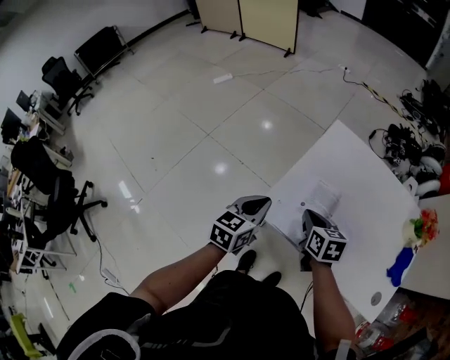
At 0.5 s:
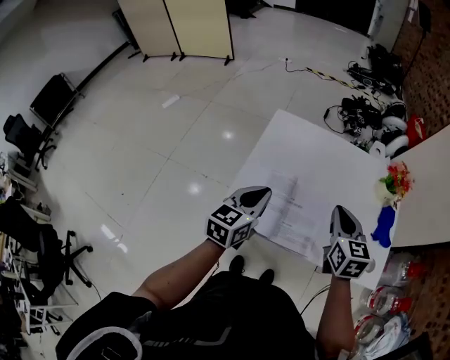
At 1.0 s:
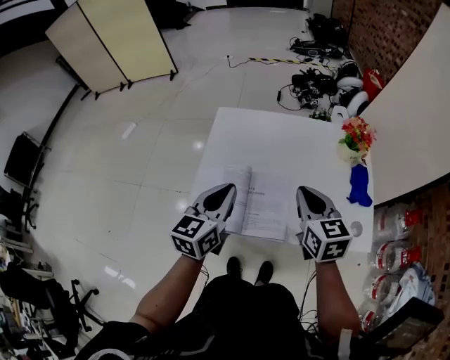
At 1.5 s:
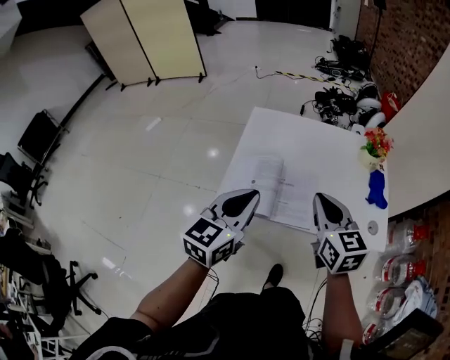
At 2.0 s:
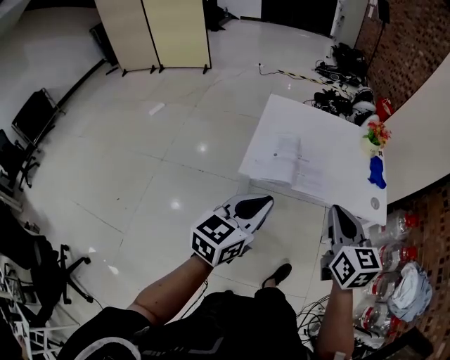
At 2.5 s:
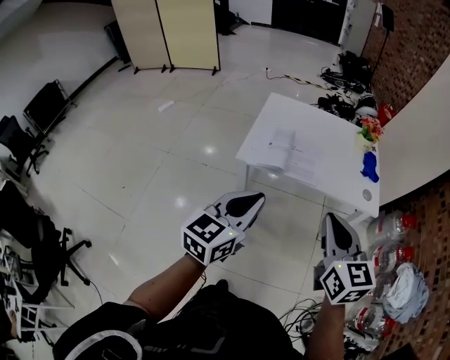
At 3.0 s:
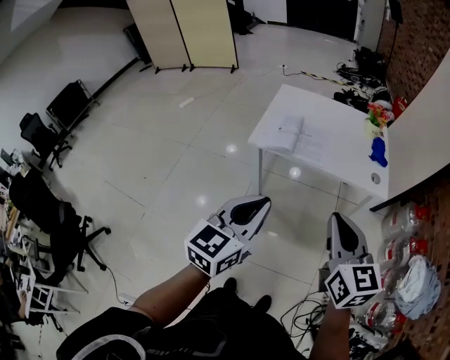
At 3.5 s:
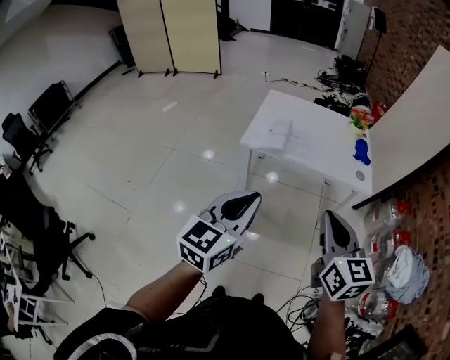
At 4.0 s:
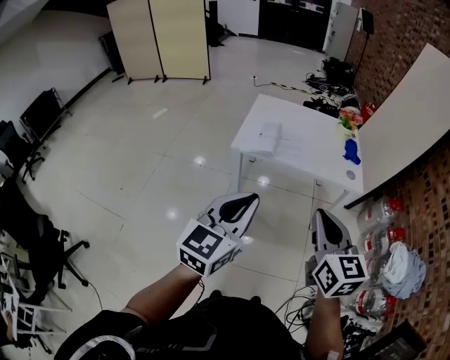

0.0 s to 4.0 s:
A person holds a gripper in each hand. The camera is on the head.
0.0 to 2.0 s: The right gripper moves about 35 cm, and turns by approximately 40 degrees. The left gripper changes place by about 30 cm, and rotates some 30 degrees.
2.0 to 4.0 s: Both grippers travel together backward, approximately 25 cm.

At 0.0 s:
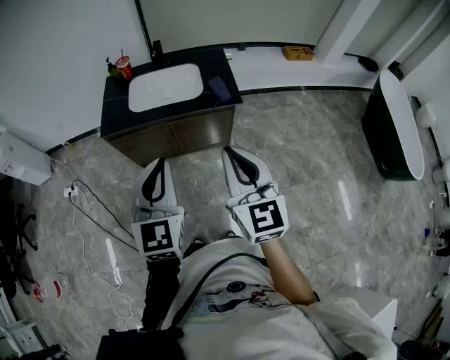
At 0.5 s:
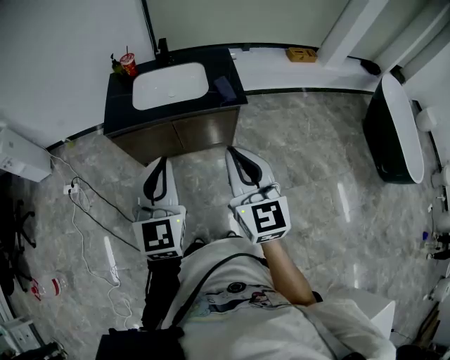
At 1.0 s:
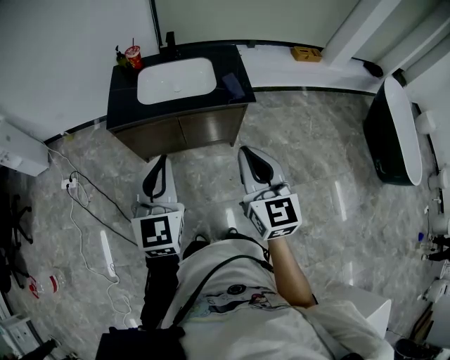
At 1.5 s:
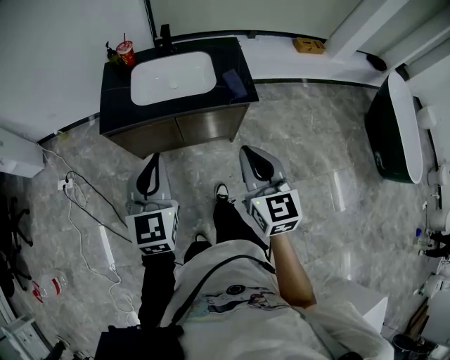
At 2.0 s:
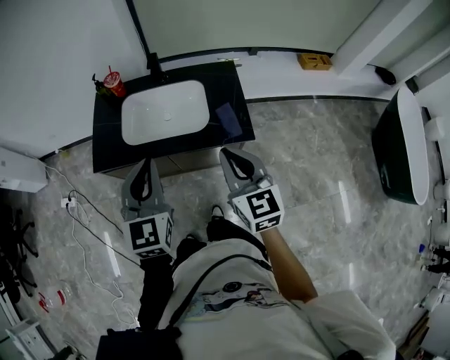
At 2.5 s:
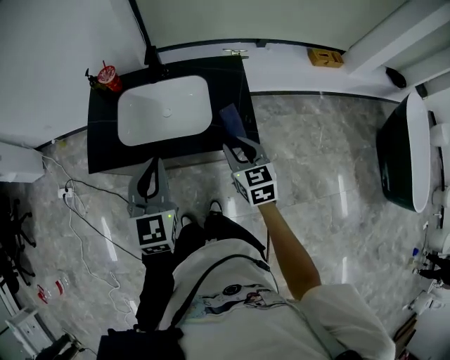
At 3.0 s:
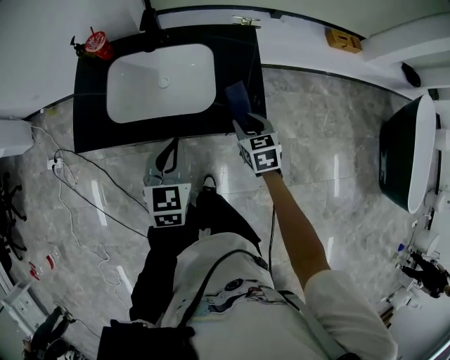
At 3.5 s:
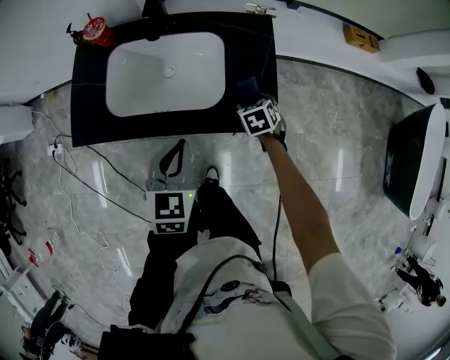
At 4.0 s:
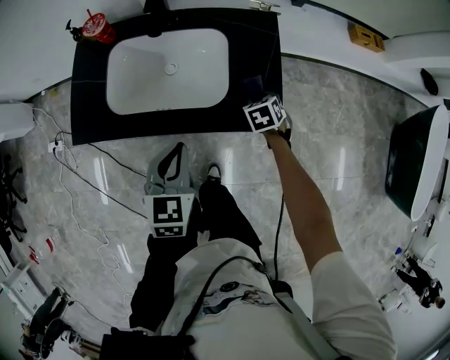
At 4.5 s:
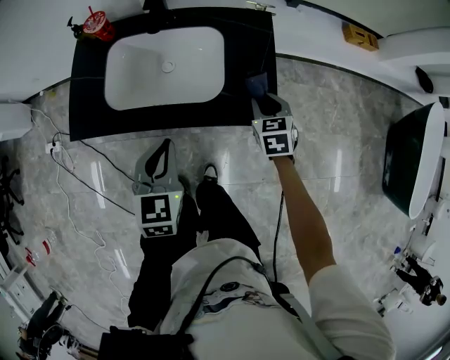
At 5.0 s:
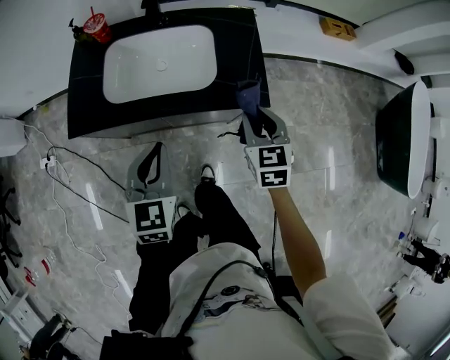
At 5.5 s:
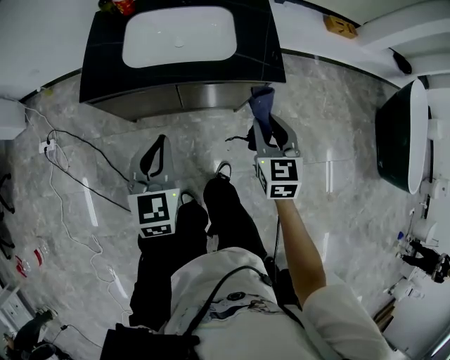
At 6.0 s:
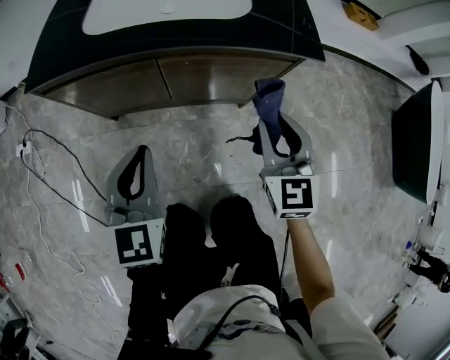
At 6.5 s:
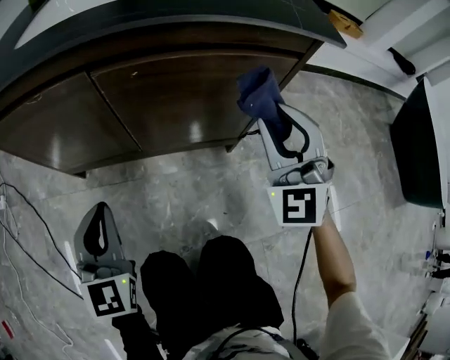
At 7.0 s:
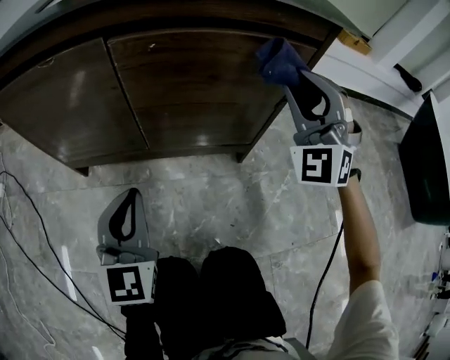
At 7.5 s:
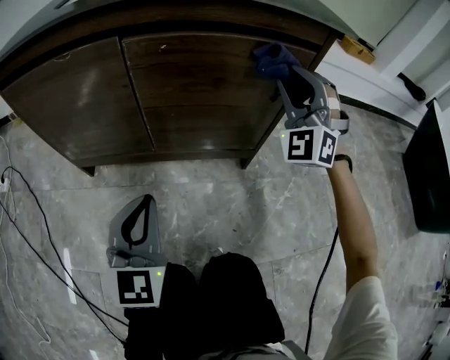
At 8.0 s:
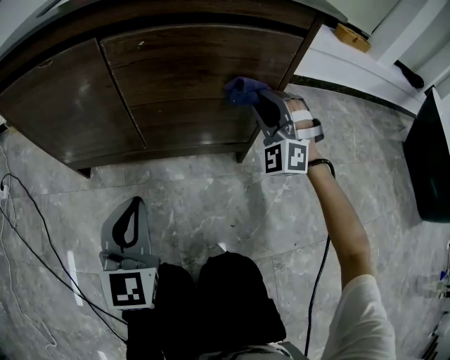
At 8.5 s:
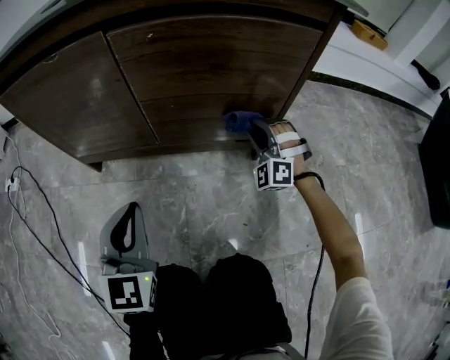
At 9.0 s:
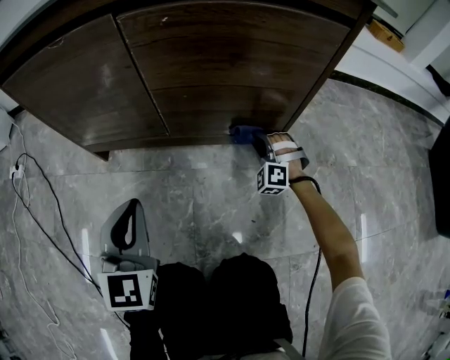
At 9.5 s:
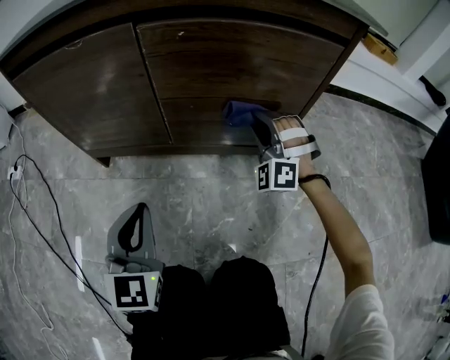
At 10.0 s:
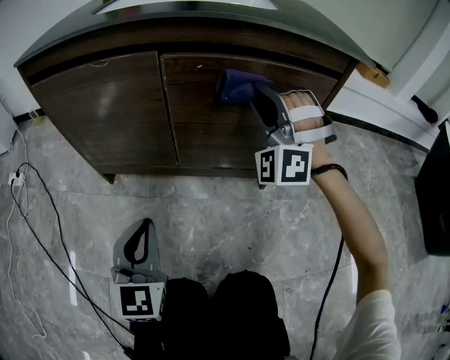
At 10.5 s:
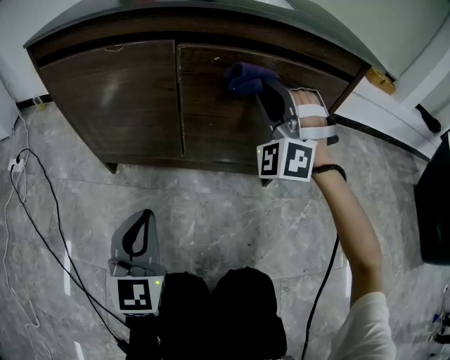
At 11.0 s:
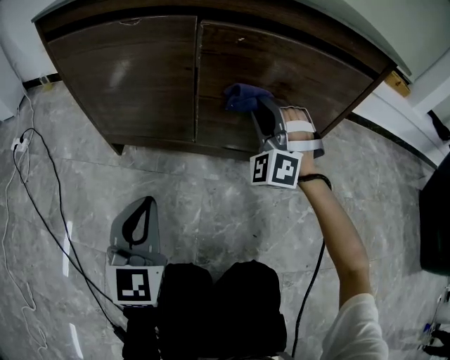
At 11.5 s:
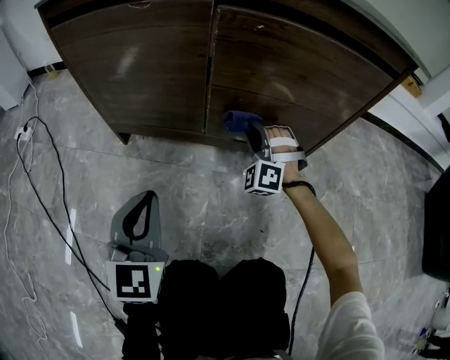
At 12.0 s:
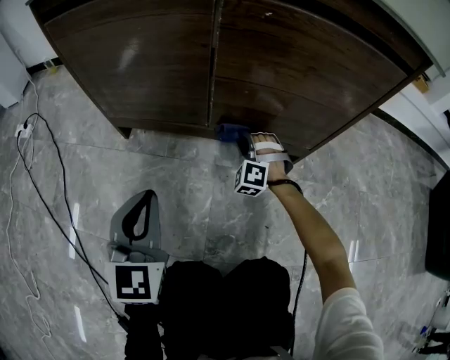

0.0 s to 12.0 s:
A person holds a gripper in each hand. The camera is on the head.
0.0 to 2.0 s: The two grippers go roughly 25 cm forward.
2.0 to 4.0 s: The left gripper moves downward, approximately 20 cm, and changes its angle by some 30 degrees, while the right gripper heads downward and forward, covering roughly 40 cm, angles its fingers downward, by some 50 degrees, and opens up.
4.0 to 6.0 s: The left gripper heads backward, downward and to the left, covering roughly 25 cm, while the right gripper is displaced backward by some 25 cm, and tips its fingers upward by approximately 50 degrees.
6.0 to 8.0 s: The right gripper travels downward and forward by some 30 cm, and rolls counterclockwise, seen from behind, by about 60 degrees, while the left gripper is displaced downward by roughly 25 cm.
8.0 to 10.0 s: The right gripper travels to the left by some 15 cm, and travels downward and back again, roughly 25 cm each way. The left gripper goes roughly 5 cm to the left.
10.0 to 12.0 s: The left gripper moves about 5 cm; the right gripper moves downward, roughly 35 cm, and tips its fingers downward by some 30 degrees.

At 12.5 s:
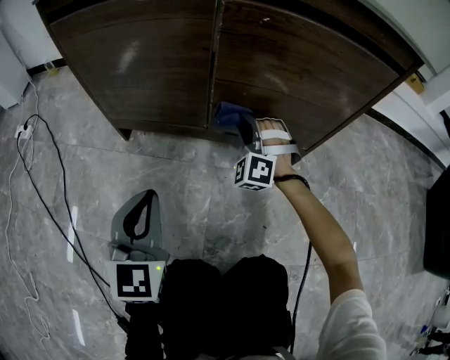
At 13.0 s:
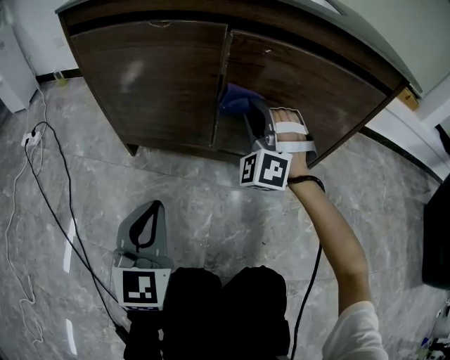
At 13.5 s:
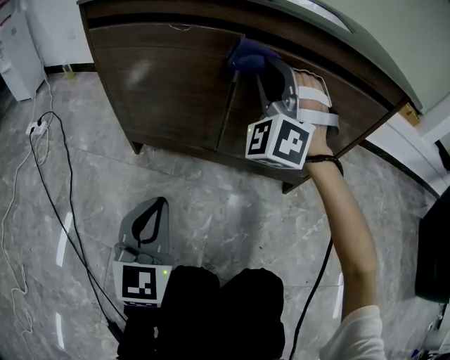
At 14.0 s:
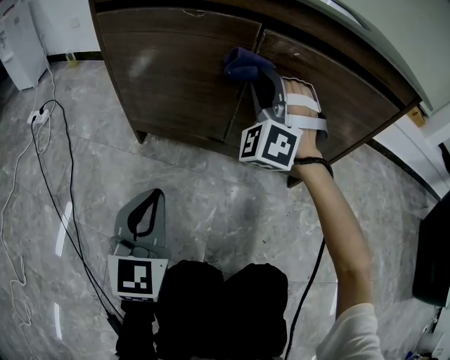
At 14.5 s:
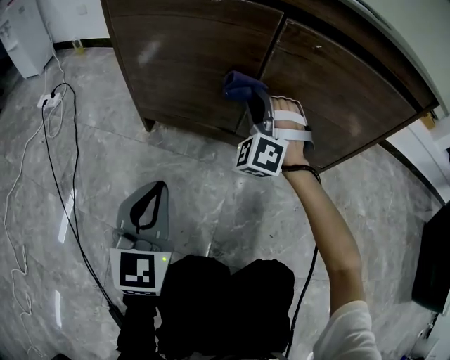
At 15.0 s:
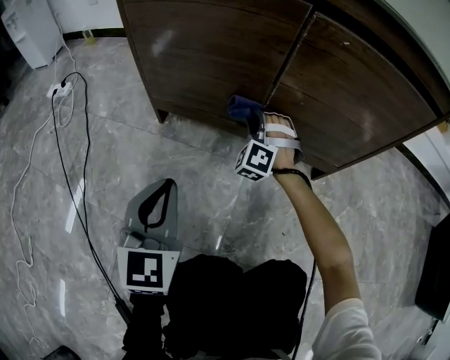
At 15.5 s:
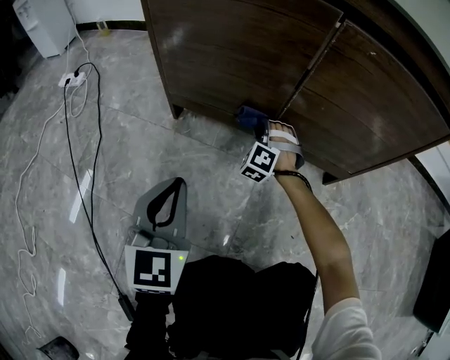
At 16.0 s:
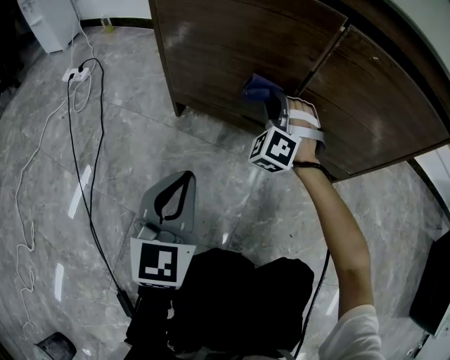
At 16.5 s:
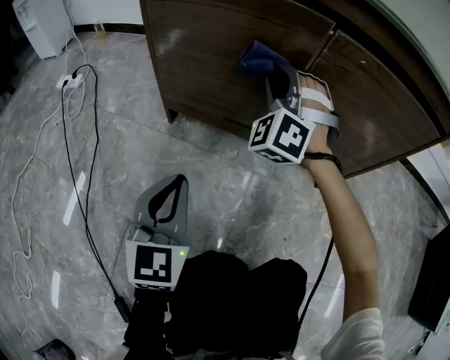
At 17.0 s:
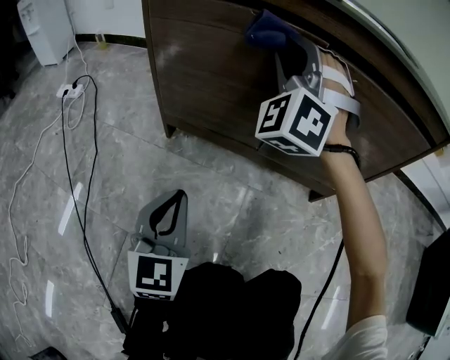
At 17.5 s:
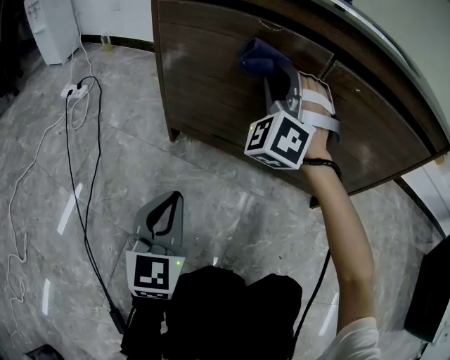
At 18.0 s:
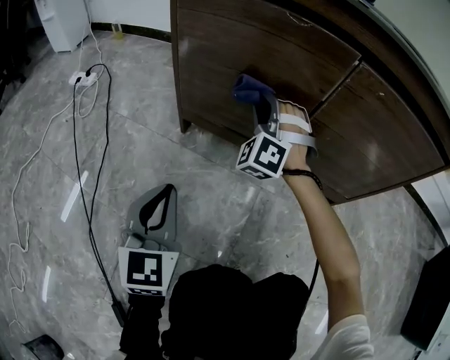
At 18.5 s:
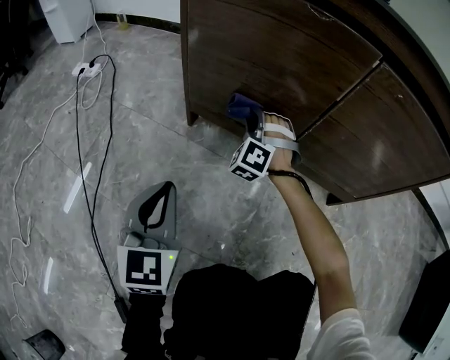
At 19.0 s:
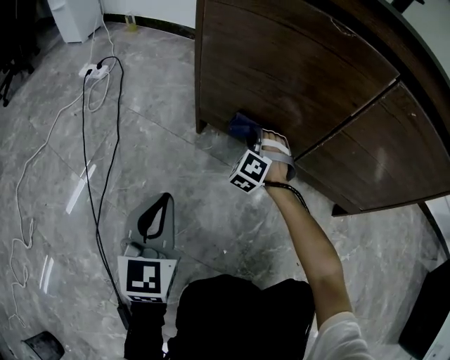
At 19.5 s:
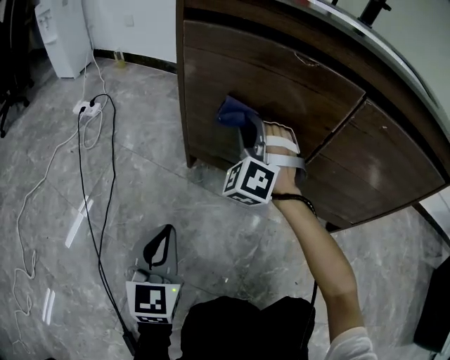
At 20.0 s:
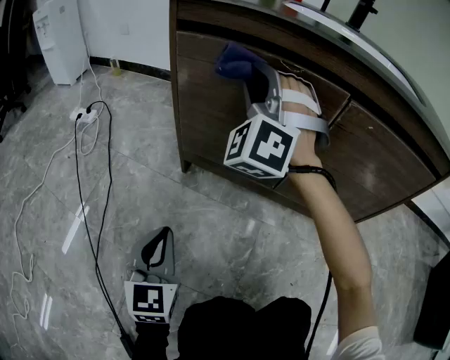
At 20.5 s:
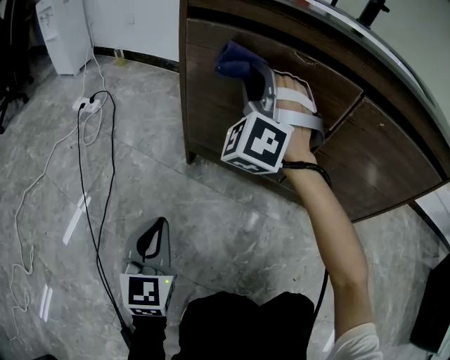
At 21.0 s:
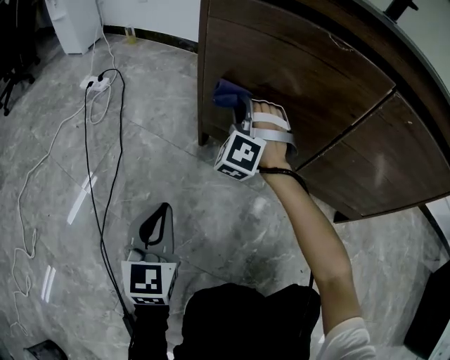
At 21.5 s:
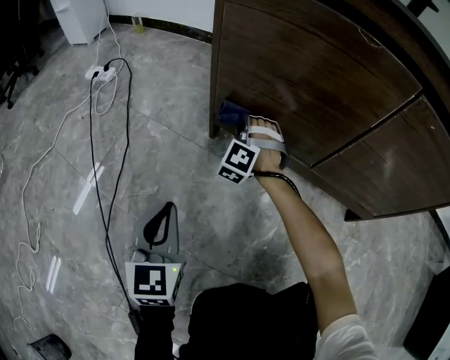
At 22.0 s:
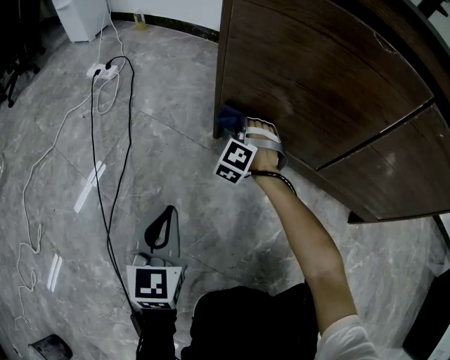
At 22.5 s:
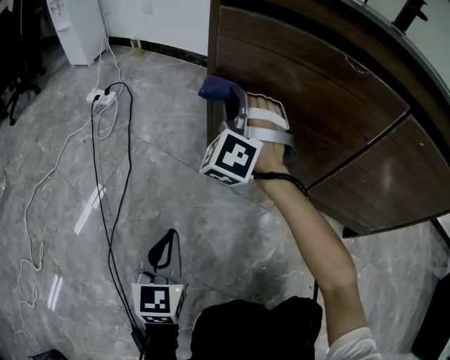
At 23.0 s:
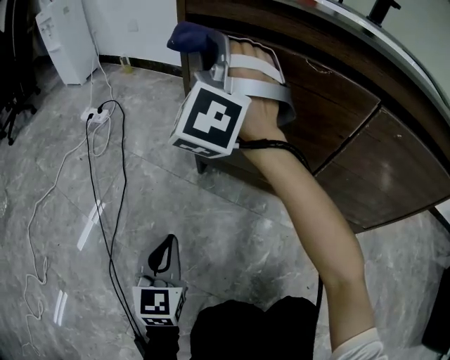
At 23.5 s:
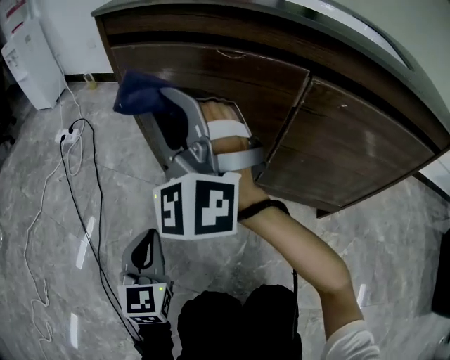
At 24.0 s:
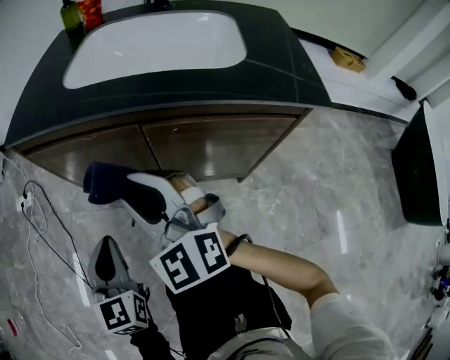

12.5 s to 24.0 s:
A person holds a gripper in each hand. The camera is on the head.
12.5 to 14.5 s: The right gripper moves upward and to the left, roughly 15 cm.
14.5 to 16.5 s: The right gripper moves to the left, about 5 cm, and goes downward and returns, approximately 20 cm each way.
16.5 to 18.5 s: The left gripper travels to the left by roughly 10 cm. Meanwhile the right gripper moves downward and to the left, about 20 cm.
18.5 to 20.0 s: The right gripper is displaced upward by approximately 30 cm, and turns by approximately 30 degrees.
20.0 to 22.0 s: The left gripper is displaced to the left and downward by roughly 10 cm. The right gripper travels downward by approximately 40 cm, and angles its fingers downward, by about 30 degrees.
22.0 to 24.0 s: The right gripper goes some 50 cm upward and backward, and rotates around the line of its fingers by some 40 degrees, clockwise from behind. Meanwhile the left gripper travels upward and to the right by about 30 cm.
